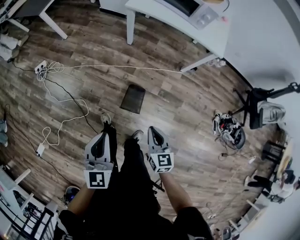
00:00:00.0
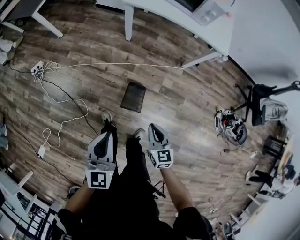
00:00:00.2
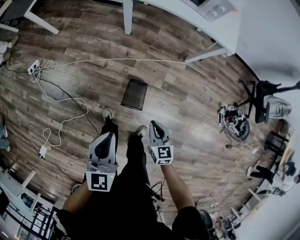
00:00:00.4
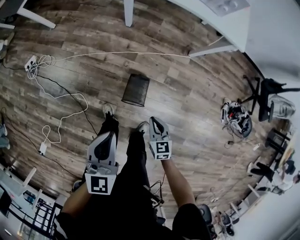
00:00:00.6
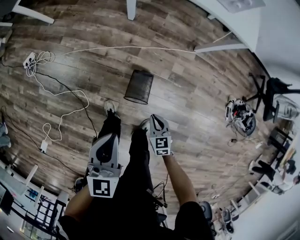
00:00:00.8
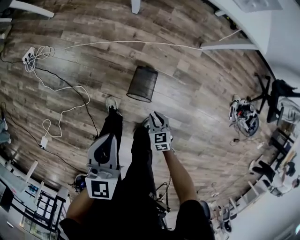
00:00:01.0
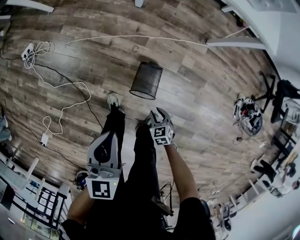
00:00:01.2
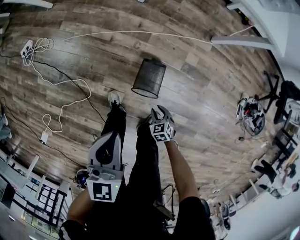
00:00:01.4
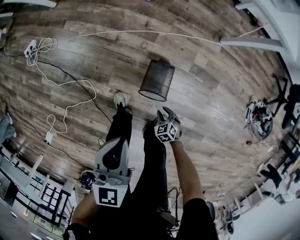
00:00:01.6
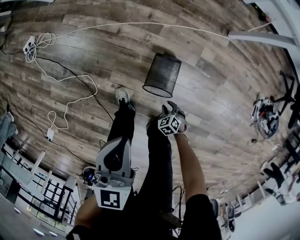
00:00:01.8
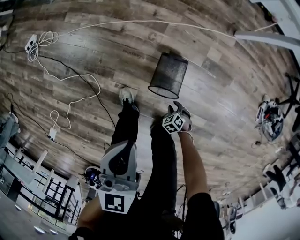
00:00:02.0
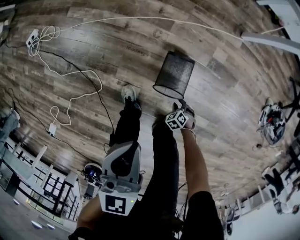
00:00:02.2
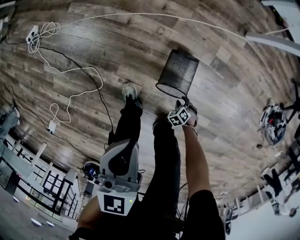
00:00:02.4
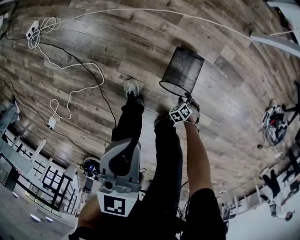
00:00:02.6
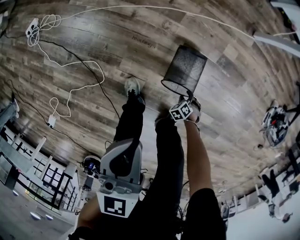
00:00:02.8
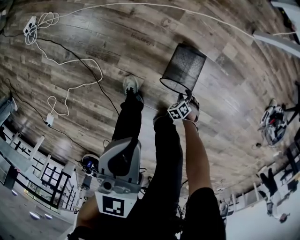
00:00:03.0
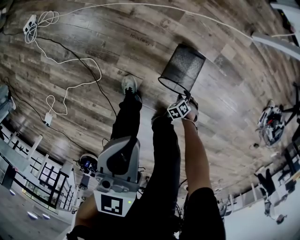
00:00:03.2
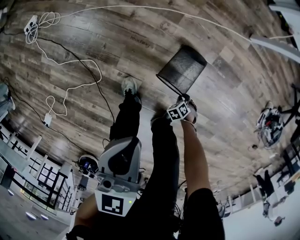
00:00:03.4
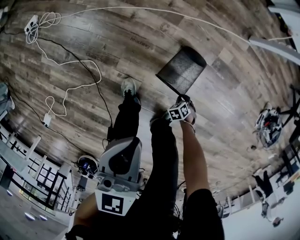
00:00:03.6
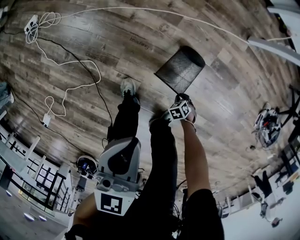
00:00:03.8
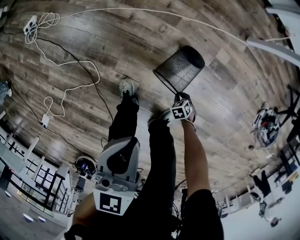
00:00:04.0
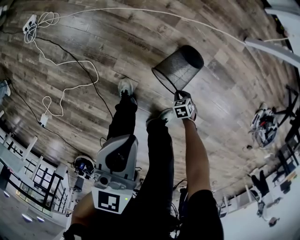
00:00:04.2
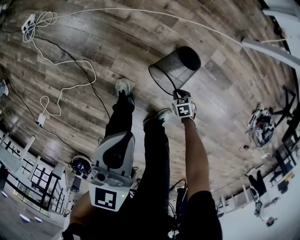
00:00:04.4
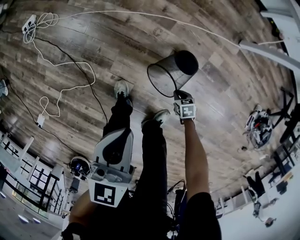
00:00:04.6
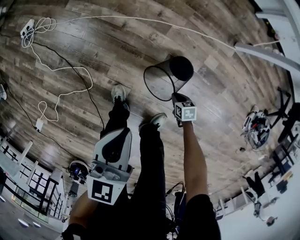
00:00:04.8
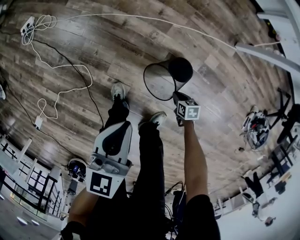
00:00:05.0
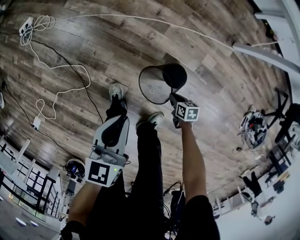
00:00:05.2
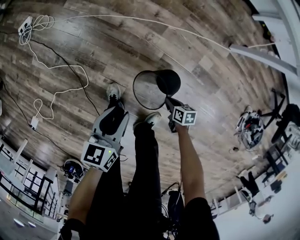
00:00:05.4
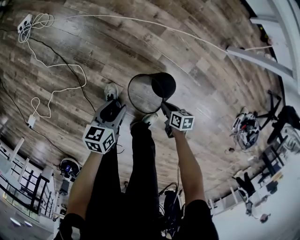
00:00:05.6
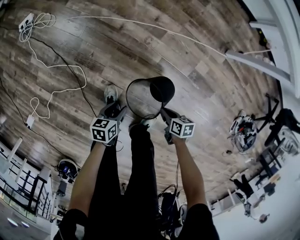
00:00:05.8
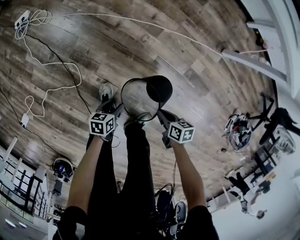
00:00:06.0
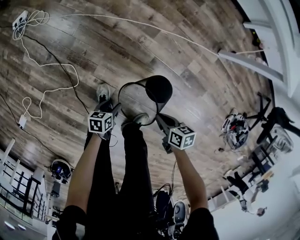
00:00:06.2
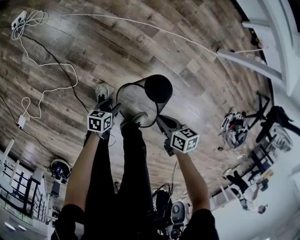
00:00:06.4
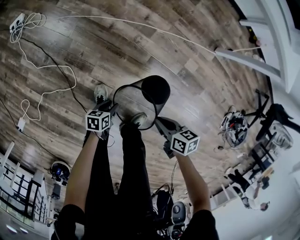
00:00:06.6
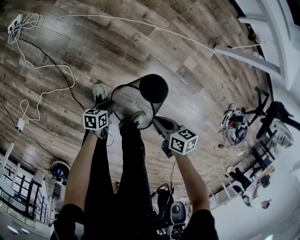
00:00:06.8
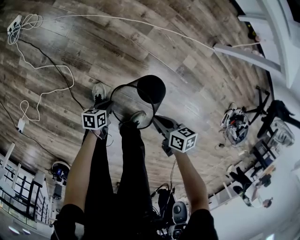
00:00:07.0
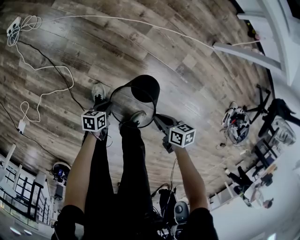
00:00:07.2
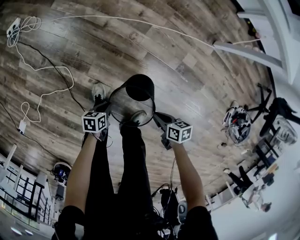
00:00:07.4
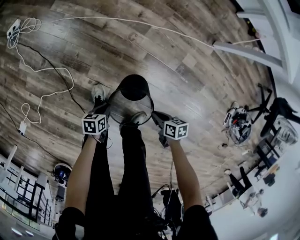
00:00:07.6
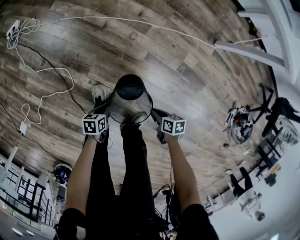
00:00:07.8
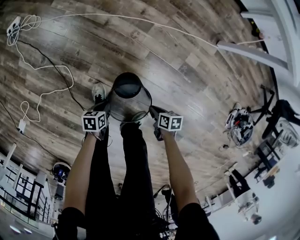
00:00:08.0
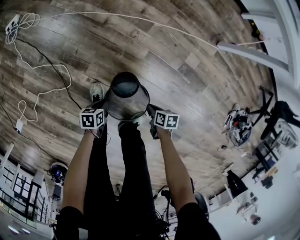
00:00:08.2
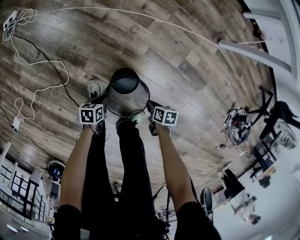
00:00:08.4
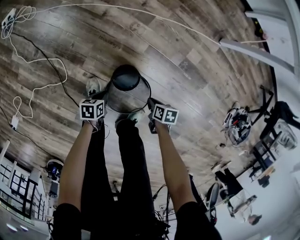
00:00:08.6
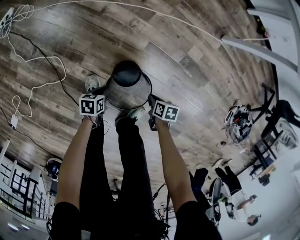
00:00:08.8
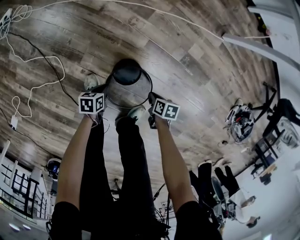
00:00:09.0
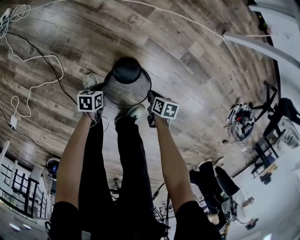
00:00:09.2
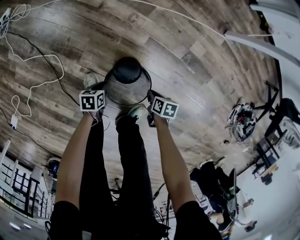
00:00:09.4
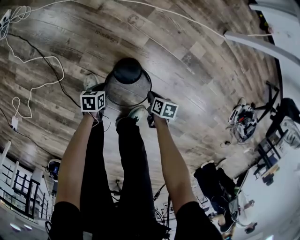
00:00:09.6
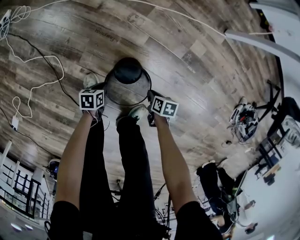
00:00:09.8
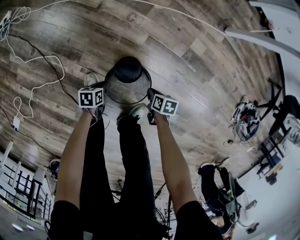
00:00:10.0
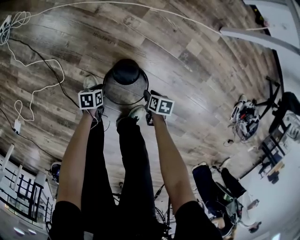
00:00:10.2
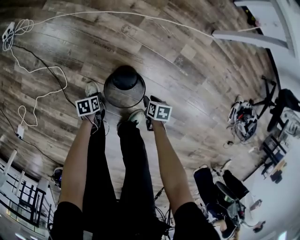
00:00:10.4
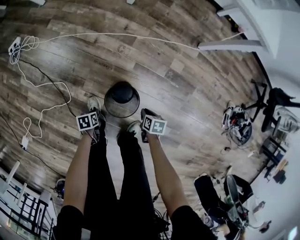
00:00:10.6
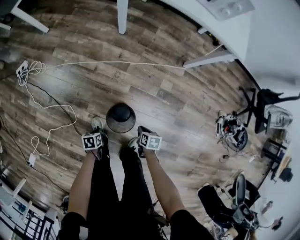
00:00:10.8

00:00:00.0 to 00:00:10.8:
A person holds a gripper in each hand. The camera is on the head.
00:00:00.0 to 00:00:01.6: The left gripper is displaced downward and forward by approximately 25 cm. Meanwhile the right gripper heads downward, covering about 50 cm, points its fingers about 40 degrees further downward, and opens up.
00:00:01.6 to 00:00:03.0: The right gripper moves downward, approximately 20 cm, and turns by about 20 degrees. Meanwhile the left gripper travels downward by roughly 10 cm.
00:00:03.0 to 00:00:04.6: The right gripper travels upward by approximately 10 cm, turns by about 40 degrees, and closes up.
00:00:04.6 to 00:00:06.2: The right gripper moves upward, about 20 cm, and changes its angle by about 30 degrees, while the left gripper goes about 35 cm downward, points its fingers roughly 30 degrees further downward, and opens up.
00:00:06.2 to 00:00:07.8: The right gripper goes about 10 cm downward. Meanwhile the left gripper closes its fingers.
00:00:07.8 to 00:00:09.2: The two grippers go some 10 cm downward.
00:00:09.2 to 00:00:10.8: Both grippers travel together upward, approximately 20 cm. The right gripper opens, then closes once more.

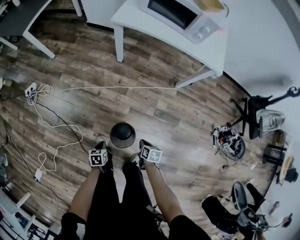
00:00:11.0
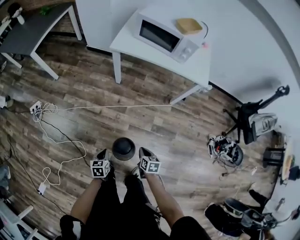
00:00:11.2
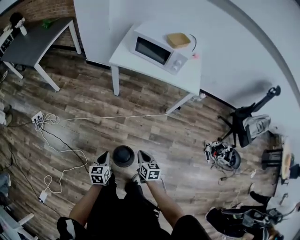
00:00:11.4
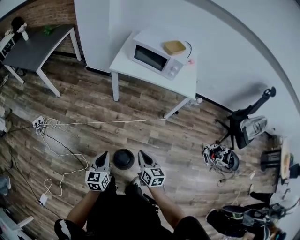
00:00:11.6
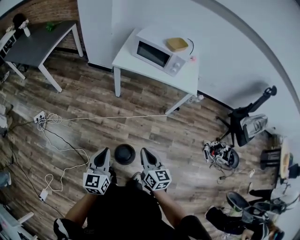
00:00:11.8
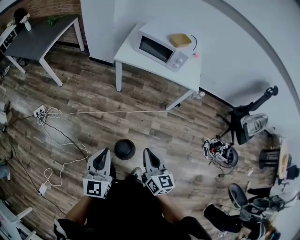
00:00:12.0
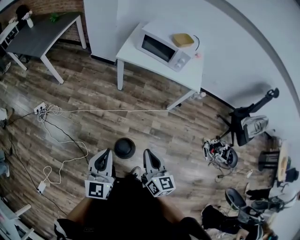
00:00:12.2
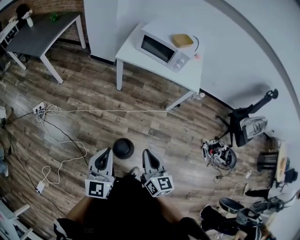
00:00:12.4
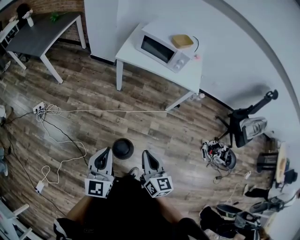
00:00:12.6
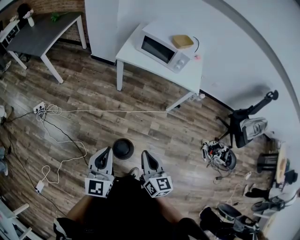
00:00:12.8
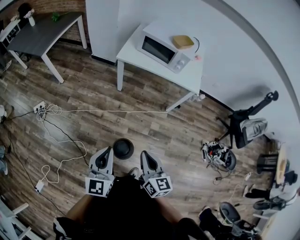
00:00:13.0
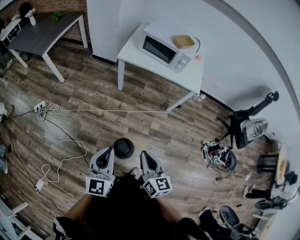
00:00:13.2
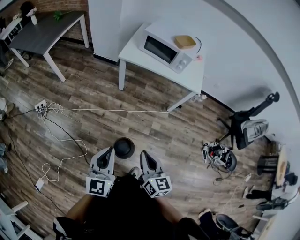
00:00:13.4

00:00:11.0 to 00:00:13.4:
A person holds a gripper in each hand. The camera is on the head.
00:00:11.0 to 00:00:12.2: Both grippers move upward, approximately 50 cm. The left gripper tilts its fingers approximately 60 degrees upward; the right gripper points its fingers roughly 50 degrees further upward.
00:00:12.2 to 00:00:13.4: The grippers stay close to where they were, moving slightly.

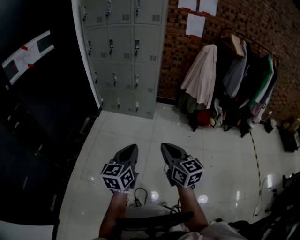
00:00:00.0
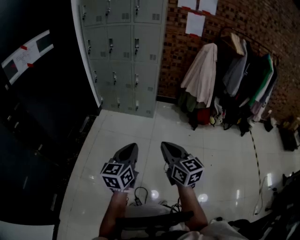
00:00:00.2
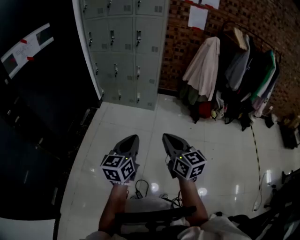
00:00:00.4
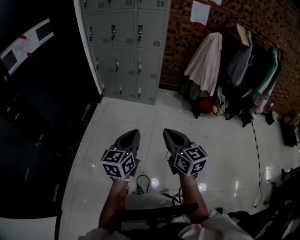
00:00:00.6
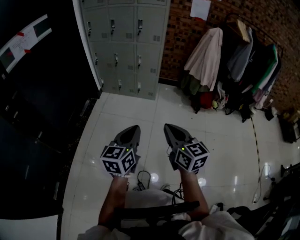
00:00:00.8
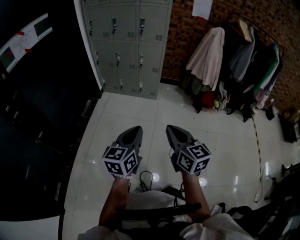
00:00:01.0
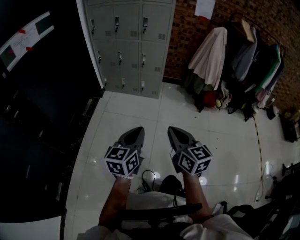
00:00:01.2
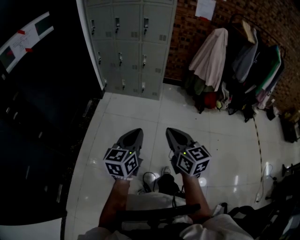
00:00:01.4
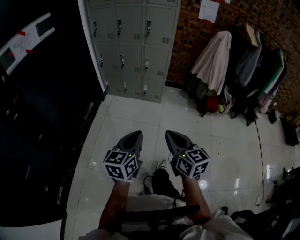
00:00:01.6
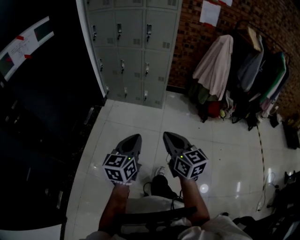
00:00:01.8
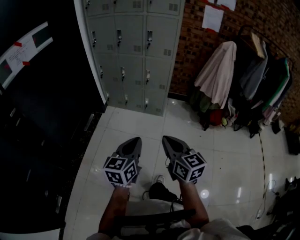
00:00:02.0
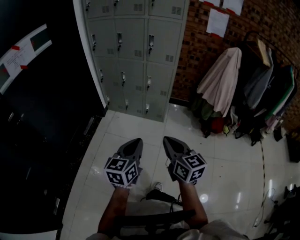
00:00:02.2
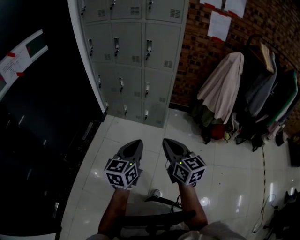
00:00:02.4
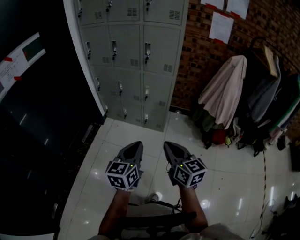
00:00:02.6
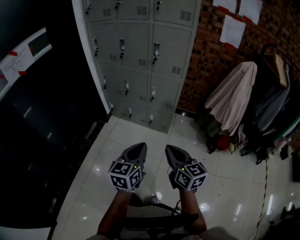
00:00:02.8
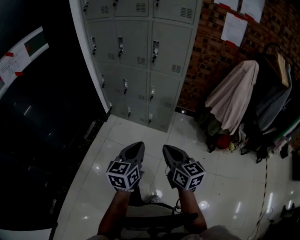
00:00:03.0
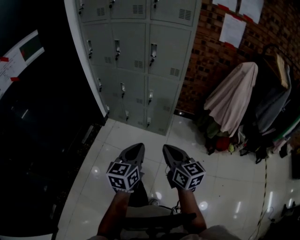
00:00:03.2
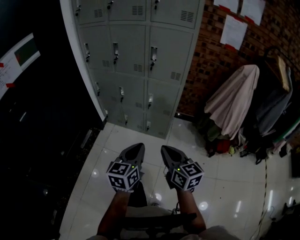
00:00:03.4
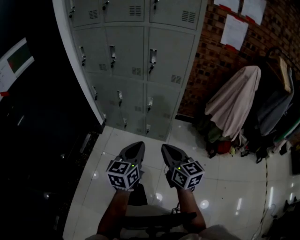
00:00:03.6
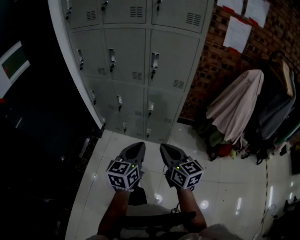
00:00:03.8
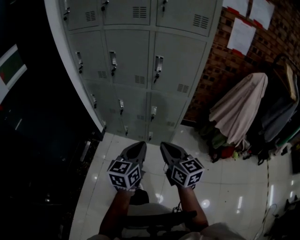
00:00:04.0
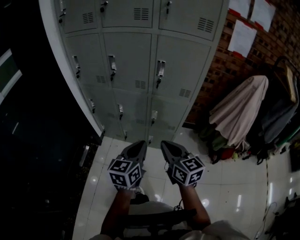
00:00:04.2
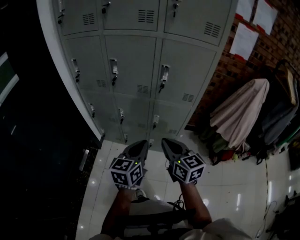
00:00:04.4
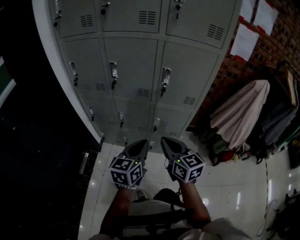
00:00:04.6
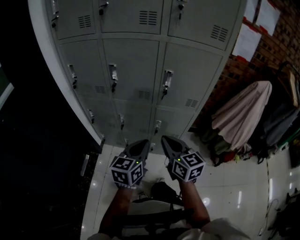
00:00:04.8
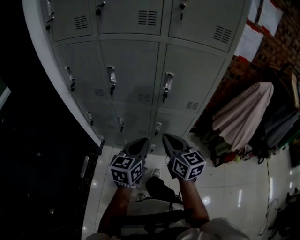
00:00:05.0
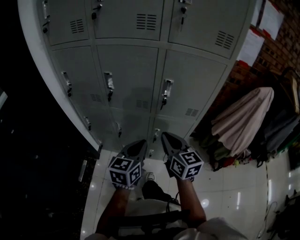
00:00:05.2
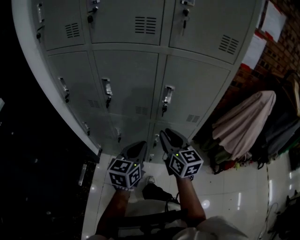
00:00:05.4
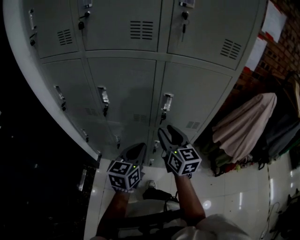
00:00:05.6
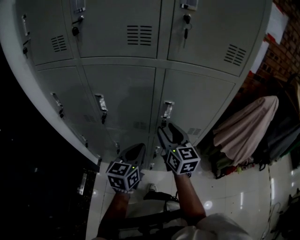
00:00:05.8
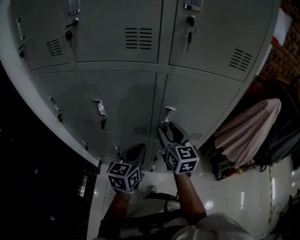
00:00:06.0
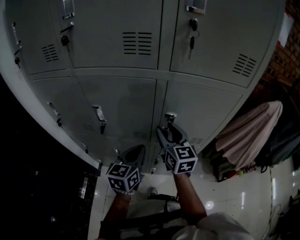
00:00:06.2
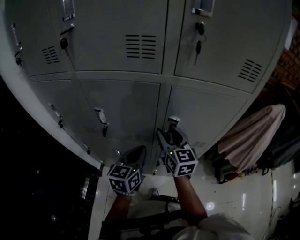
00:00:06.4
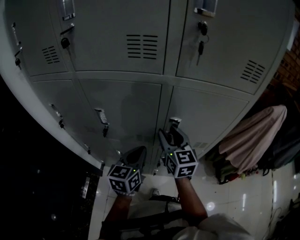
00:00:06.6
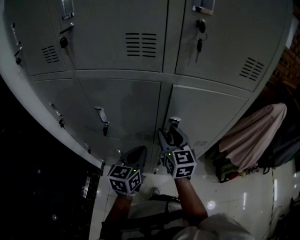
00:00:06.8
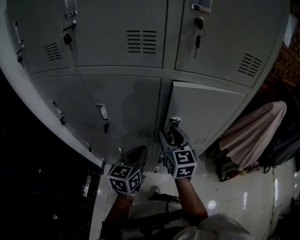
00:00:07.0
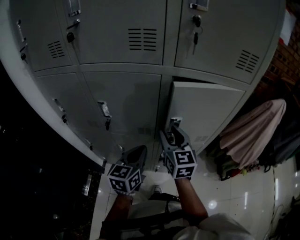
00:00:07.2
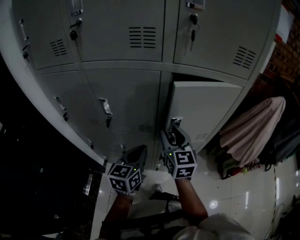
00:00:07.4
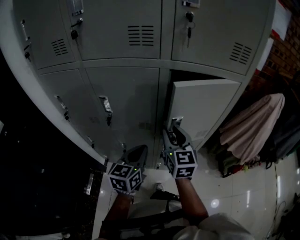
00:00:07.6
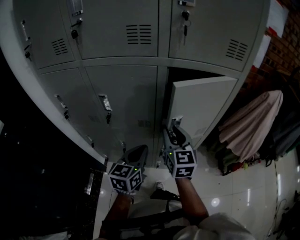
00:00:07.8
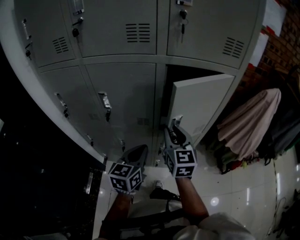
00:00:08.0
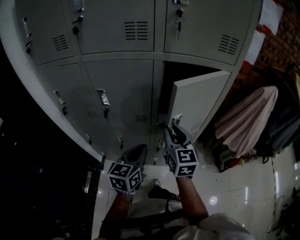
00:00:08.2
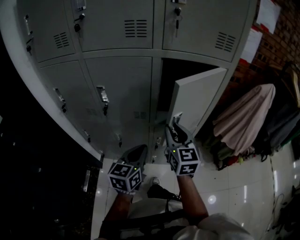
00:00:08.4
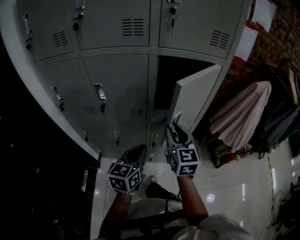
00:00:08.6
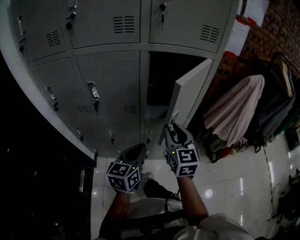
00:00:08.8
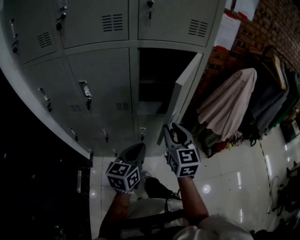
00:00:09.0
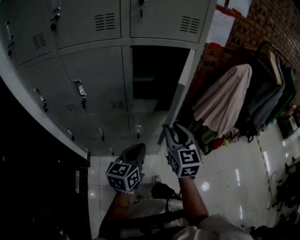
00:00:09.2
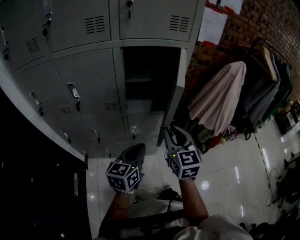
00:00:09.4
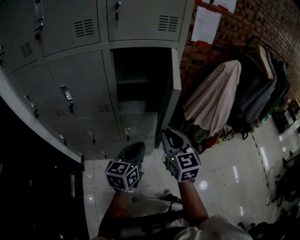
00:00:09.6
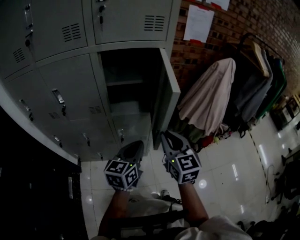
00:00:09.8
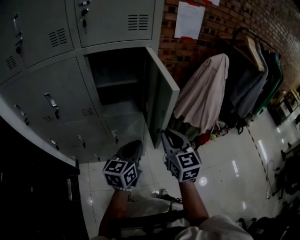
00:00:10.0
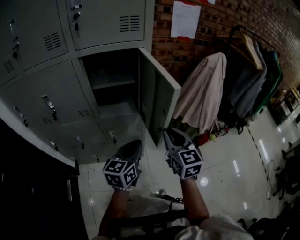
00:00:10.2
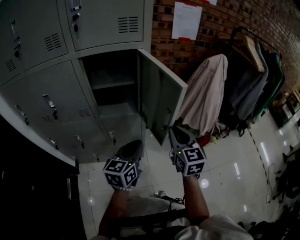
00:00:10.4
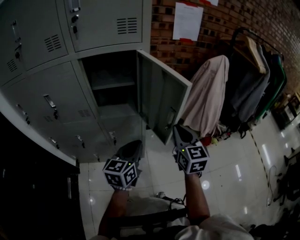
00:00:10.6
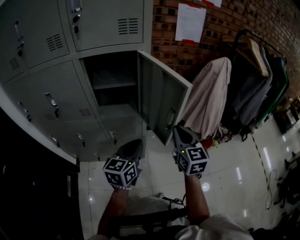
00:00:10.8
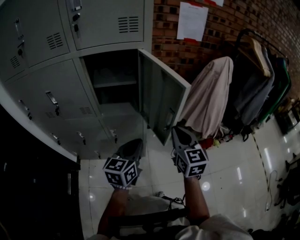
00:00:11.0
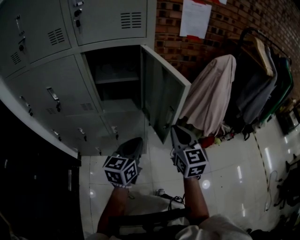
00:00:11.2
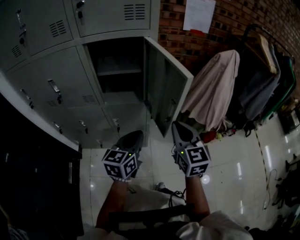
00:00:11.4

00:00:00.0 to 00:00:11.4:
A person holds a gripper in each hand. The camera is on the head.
00:00:00.0 to 00:00:01.4: Both grippers move to the left, roughly 10 cm.
00:00:01.4 to 00:00:02.8: The grippers both shift forward by about 30 cm.
00:00:02.8 to 00:00:04.2: Both grippers move forward, some 30 cm.
00:00:04.2 to 00:00:05.6: The two grippers go roughly 25 cm forward. The right gripper opens.
00:00:05.6 to 00:00:07.2: The two grippers go about 5 cm forward.
00:00:07.2 to 00:00:08.6: The left gripper moves backward, approximately 10 cm. The right gripper moves backward and to the right, approximately 10 cm.
00:00:08.6 to 00:00:10.0: The two grippers go some 20 cm to the right.
00:00:10.0 to 00:00:11.4: The right gripper goes some 5 cm to the right.
